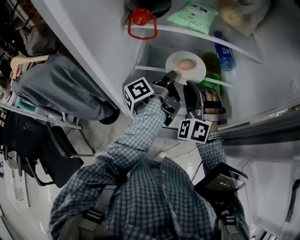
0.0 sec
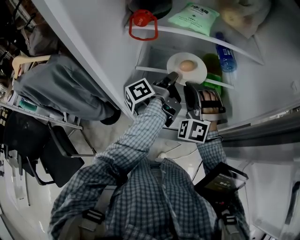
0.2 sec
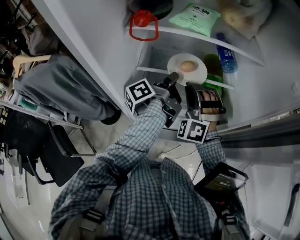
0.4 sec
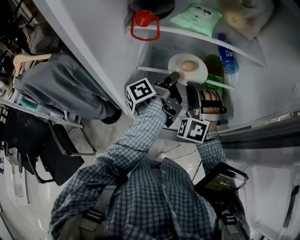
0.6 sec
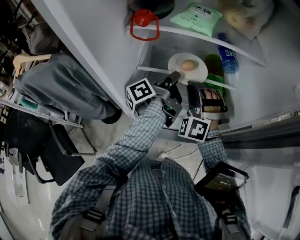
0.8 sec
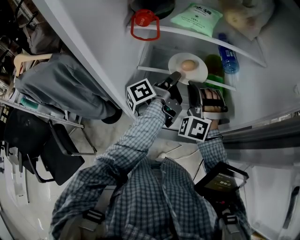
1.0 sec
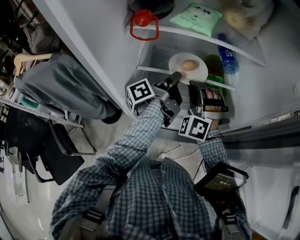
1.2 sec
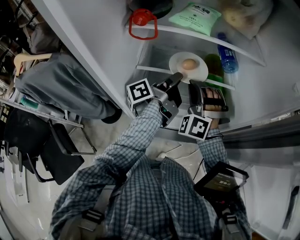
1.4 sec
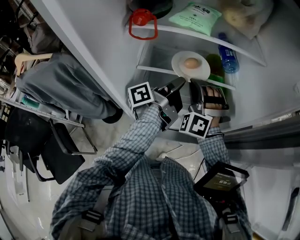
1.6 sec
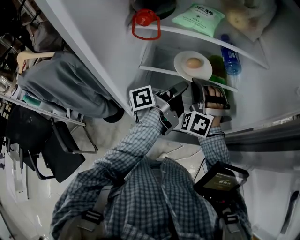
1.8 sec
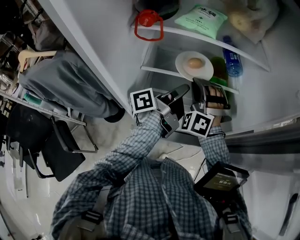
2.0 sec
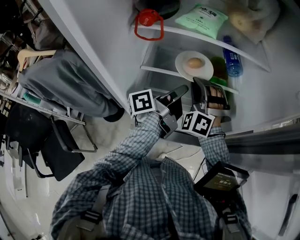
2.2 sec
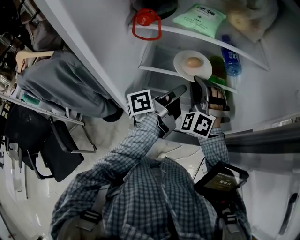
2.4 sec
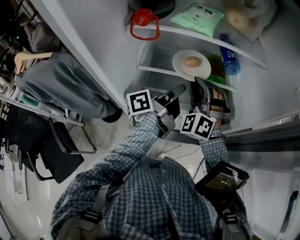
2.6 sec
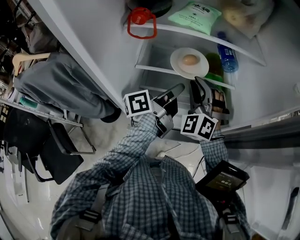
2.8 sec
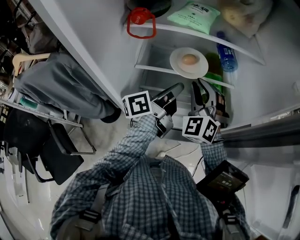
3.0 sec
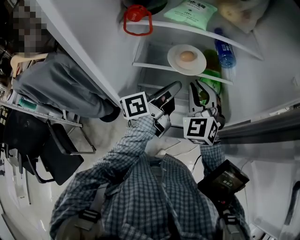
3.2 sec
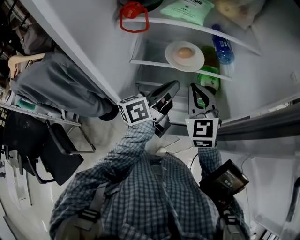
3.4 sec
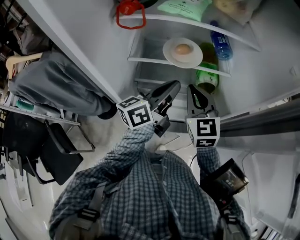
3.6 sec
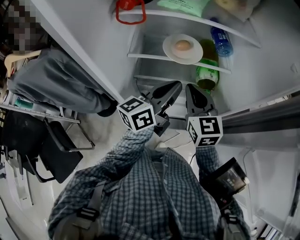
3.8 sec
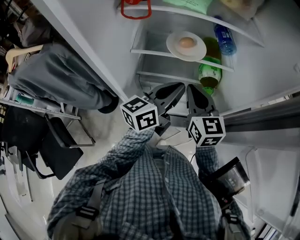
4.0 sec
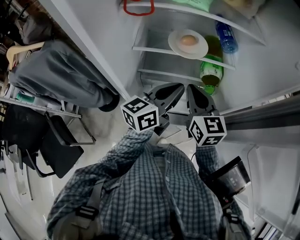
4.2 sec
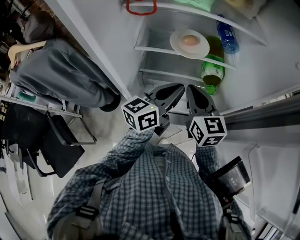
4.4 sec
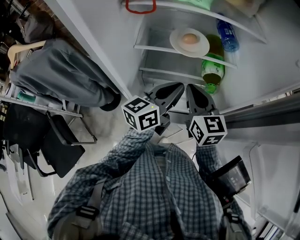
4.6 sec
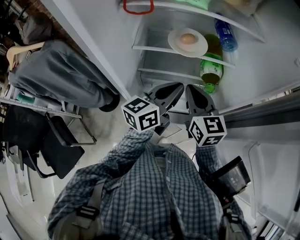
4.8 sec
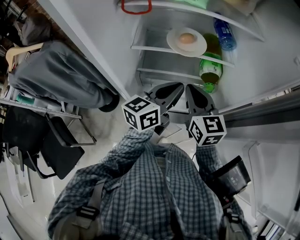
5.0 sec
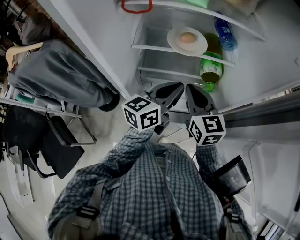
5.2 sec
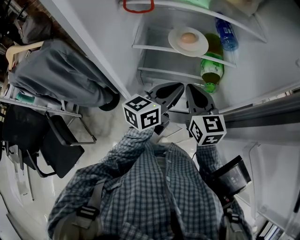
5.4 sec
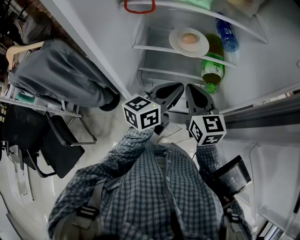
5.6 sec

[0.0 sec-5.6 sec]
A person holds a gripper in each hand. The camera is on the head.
2.8 sec to 4.2 sec: The right gripper moves roughly 10 cm, and twists some 70 degrees clockwise, seen from behind.

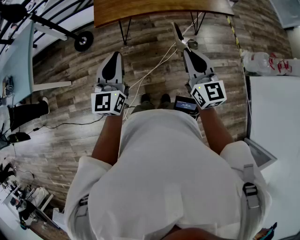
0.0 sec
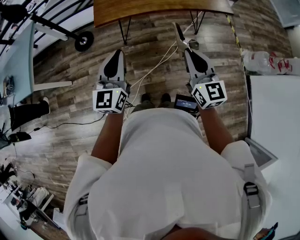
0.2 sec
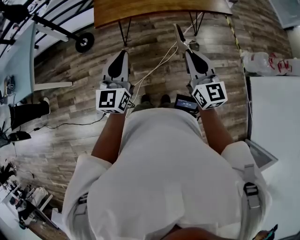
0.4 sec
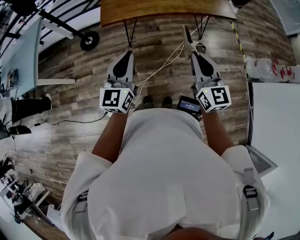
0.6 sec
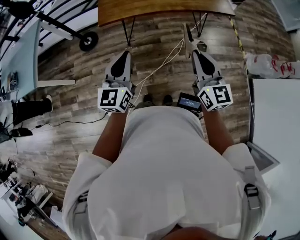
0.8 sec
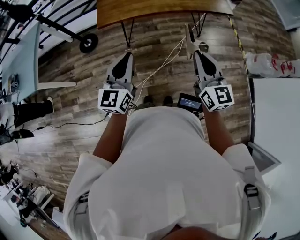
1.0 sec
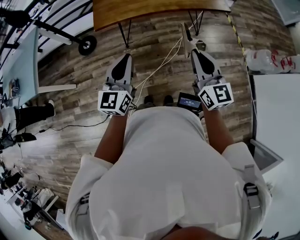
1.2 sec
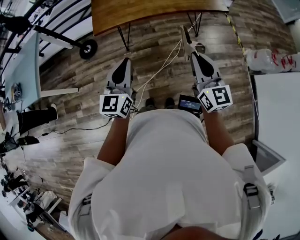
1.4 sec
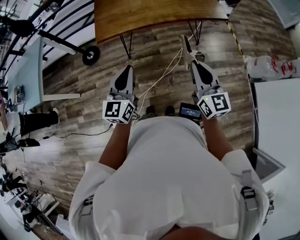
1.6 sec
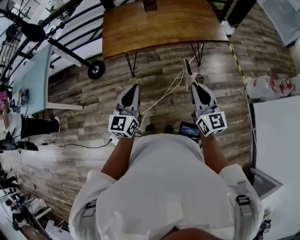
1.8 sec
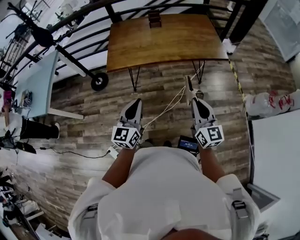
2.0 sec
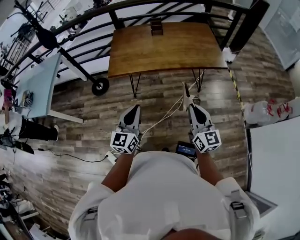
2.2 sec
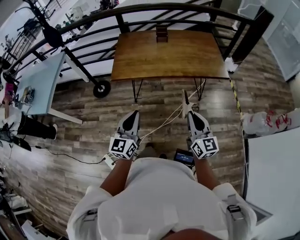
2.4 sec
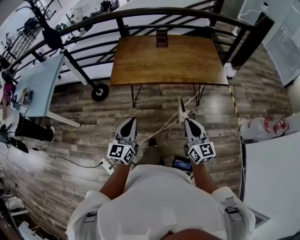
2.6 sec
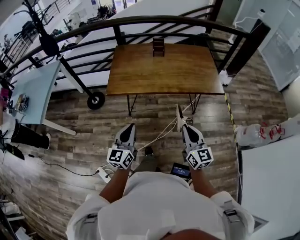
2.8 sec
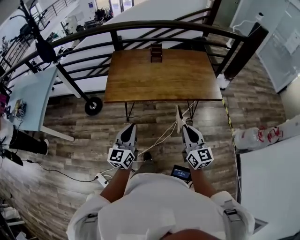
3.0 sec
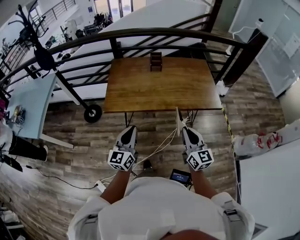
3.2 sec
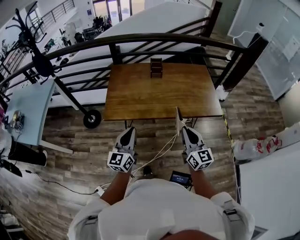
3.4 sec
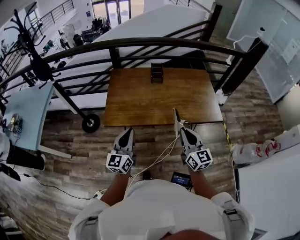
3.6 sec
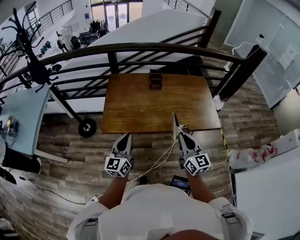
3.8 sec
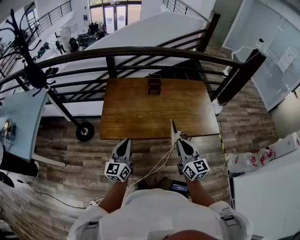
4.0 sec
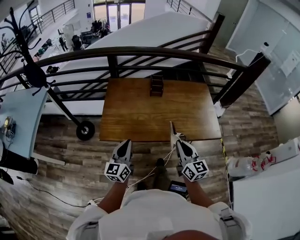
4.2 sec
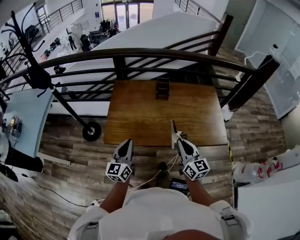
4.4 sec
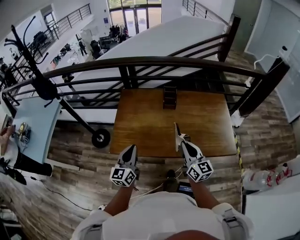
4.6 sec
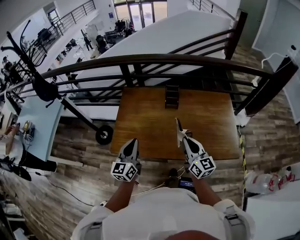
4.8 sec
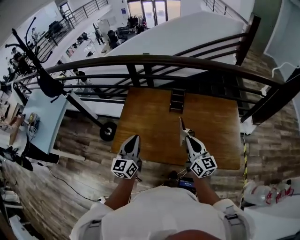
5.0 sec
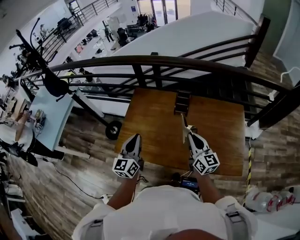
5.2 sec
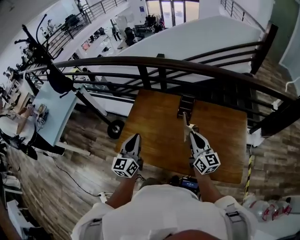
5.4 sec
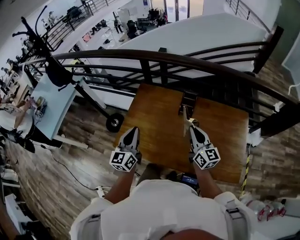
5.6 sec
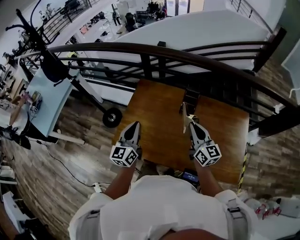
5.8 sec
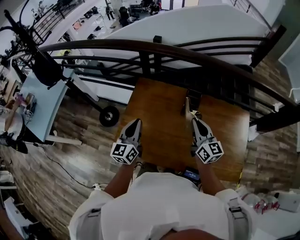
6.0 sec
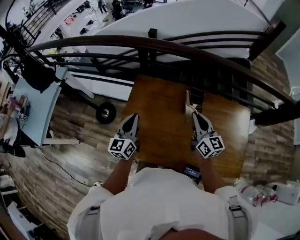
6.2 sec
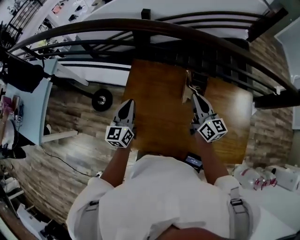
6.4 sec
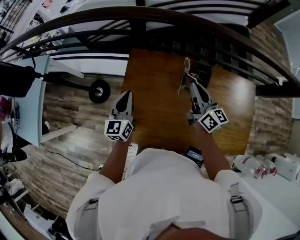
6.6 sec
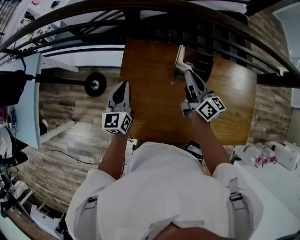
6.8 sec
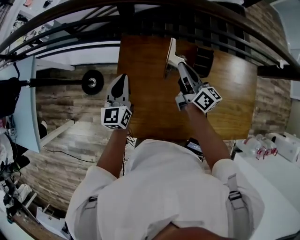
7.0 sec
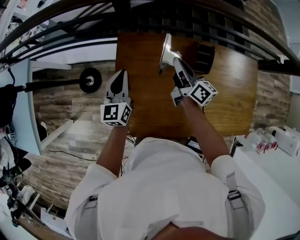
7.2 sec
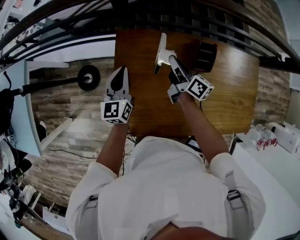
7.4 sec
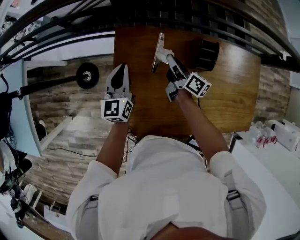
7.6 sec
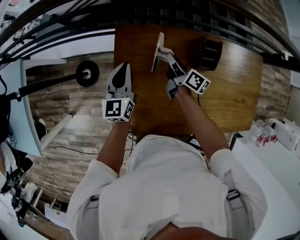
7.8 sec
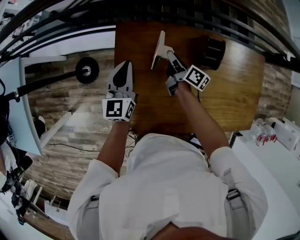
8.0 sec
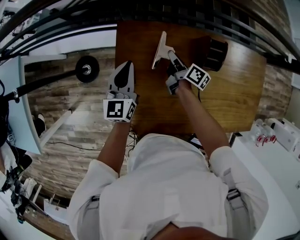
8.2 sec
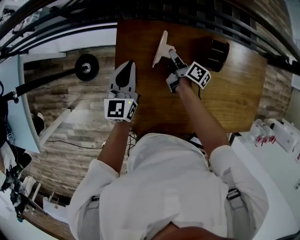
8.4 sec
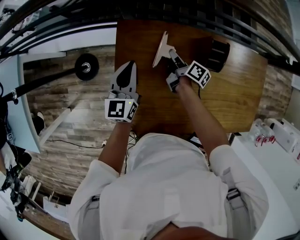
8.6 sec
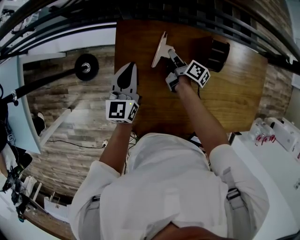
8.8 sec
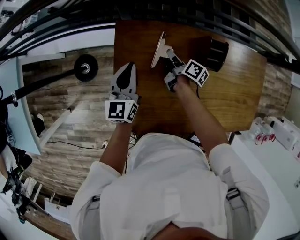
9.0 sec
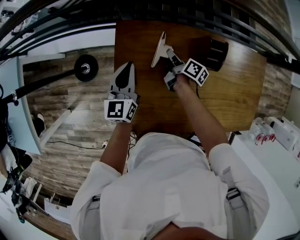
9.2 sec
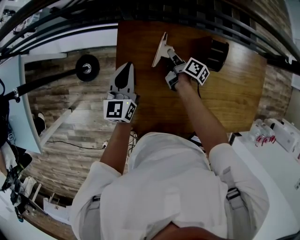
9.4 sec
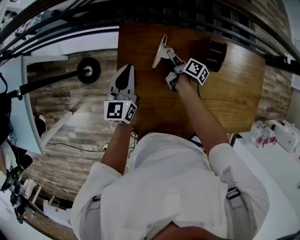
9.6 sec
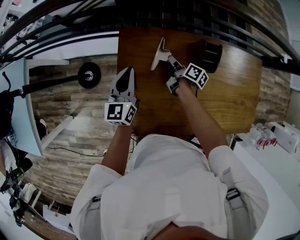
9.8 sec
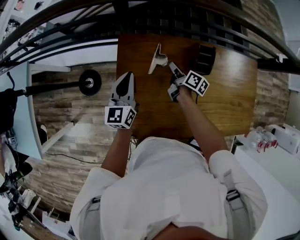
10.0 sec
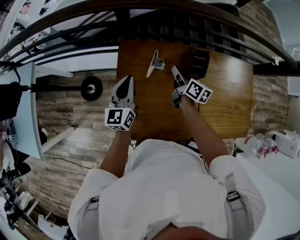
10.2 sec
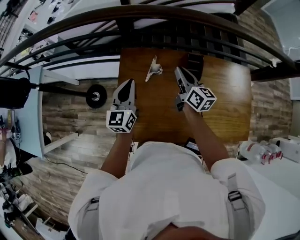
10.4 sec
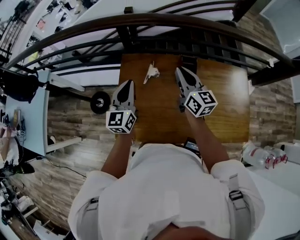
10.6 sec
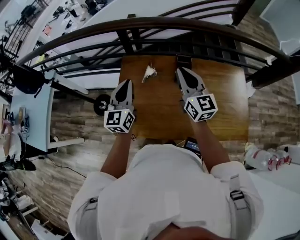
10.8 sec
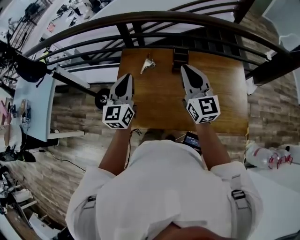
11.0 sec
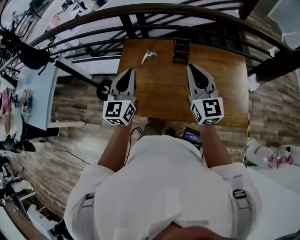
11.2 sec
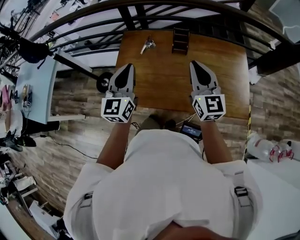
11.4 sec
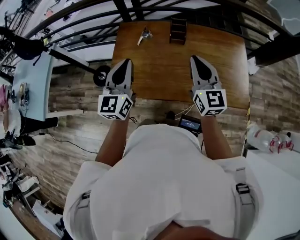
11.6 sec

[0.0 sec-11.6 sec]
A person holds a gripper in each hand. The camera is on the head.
0.0 sec to 1.4 sec: The grippers both shift to the right by about 10 cm.
1.4 sec to 2.8 sec: The right gripper heads forward, covering some 5 cm.
2.8 sec to 4.4 sec: Both grippers move forward, about 35 cm.
4.4 sec to 5.8 sec: Both grippers move forward, approximately 30 cm.
5.8 sec to 7.2 sec: The grippers both shift forward by some 25 cm. The right gripper changes its angle by some 30 degrees.
7.2 sec to 8.8 sec: The right gripper is displaced downward by some 20 cm, and swivels some 40 degrees.
8.8 sec to 10.2 sec: The left gripper heads upward, covering roughly 5 cm; the right gripper shifts some 10 cm upward and backward, and swivels some 20 degrees.
10.2 sec to 11.6 sec: Both grippers move backward and upward, some 40 cm. The right gripper rotates around the line of its fingers by about 50 degrees, counterclockwise from behind.

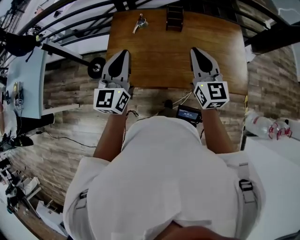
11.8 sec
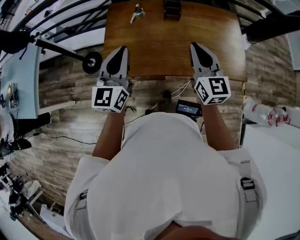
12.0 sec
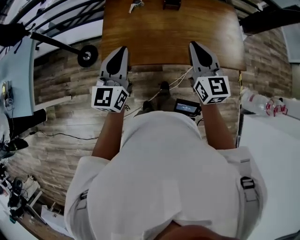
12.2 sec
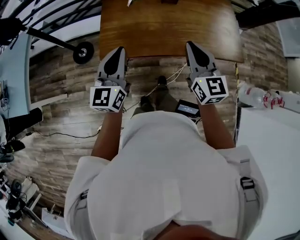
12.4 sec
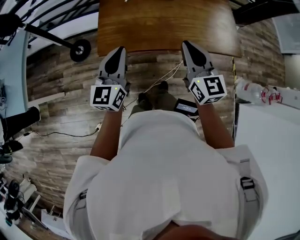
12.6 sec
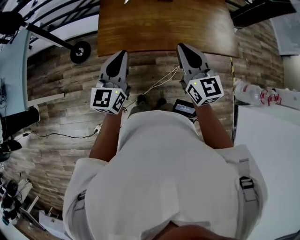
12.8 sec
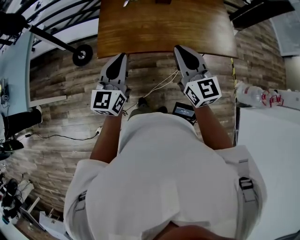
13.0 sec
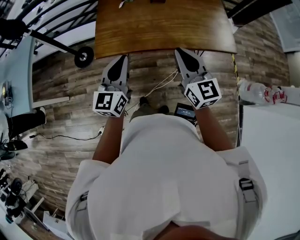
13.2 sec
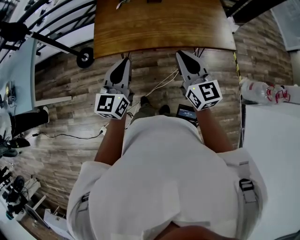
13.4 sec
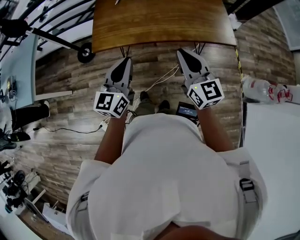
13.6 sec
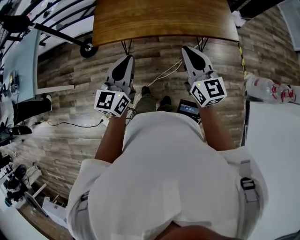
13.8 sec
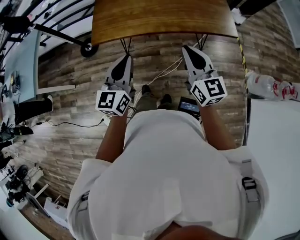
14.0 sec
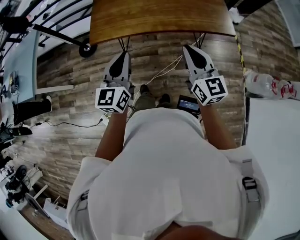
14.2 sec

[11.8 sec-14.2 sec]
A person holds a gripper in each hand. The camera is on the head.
11.8 sec to 13.0 sec: The left gripper moves backward, roughly 20 cm. The right gripper goes some 25 cm backward and to the left.
13.0 sec to 14.2 sec: The two grippers go about 25 cm to the right and backward.

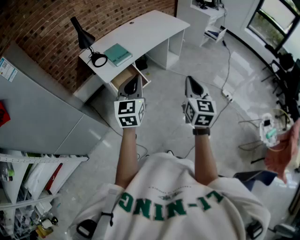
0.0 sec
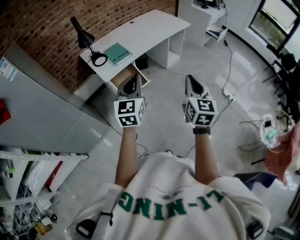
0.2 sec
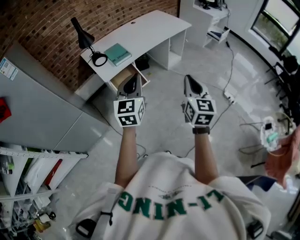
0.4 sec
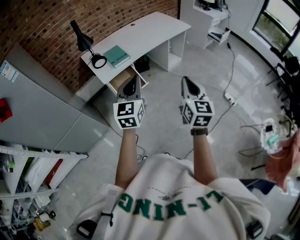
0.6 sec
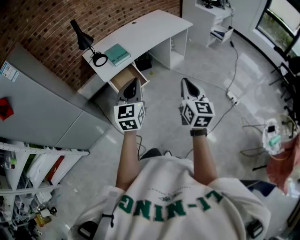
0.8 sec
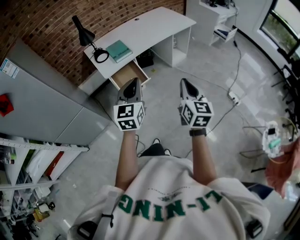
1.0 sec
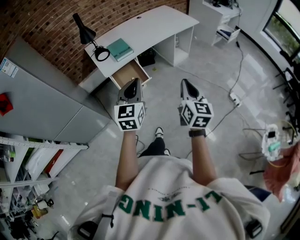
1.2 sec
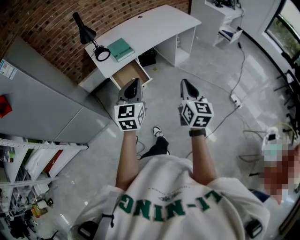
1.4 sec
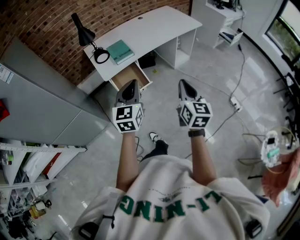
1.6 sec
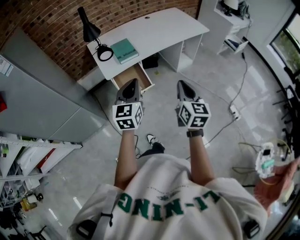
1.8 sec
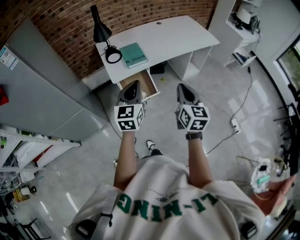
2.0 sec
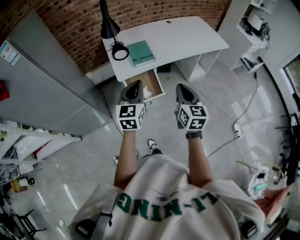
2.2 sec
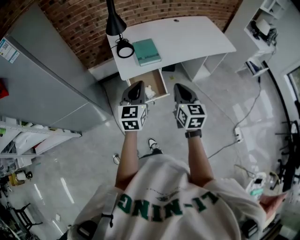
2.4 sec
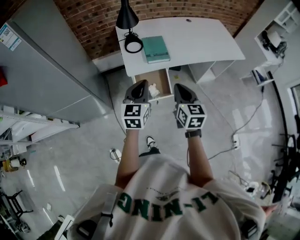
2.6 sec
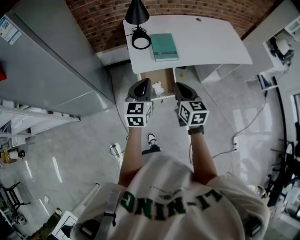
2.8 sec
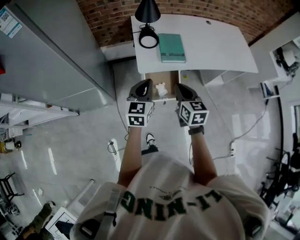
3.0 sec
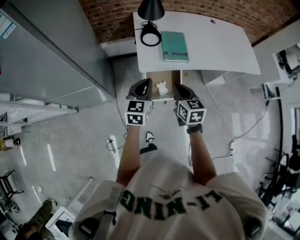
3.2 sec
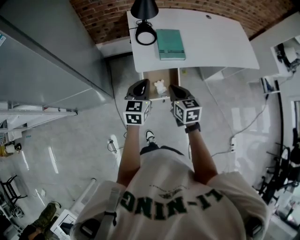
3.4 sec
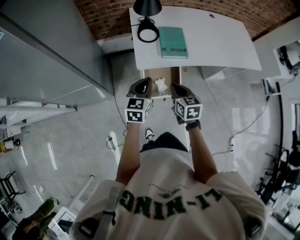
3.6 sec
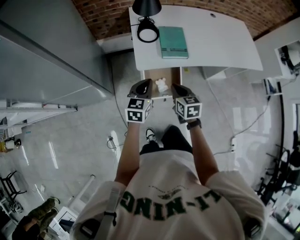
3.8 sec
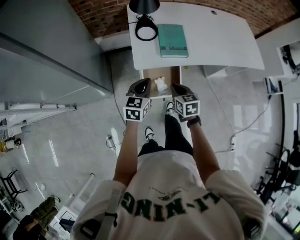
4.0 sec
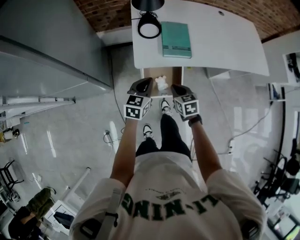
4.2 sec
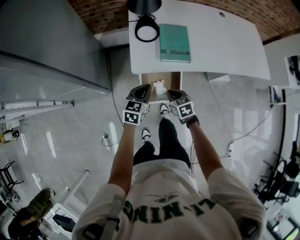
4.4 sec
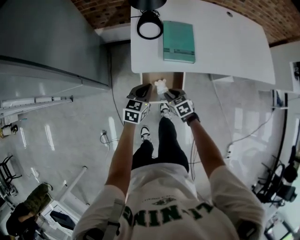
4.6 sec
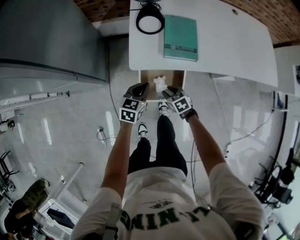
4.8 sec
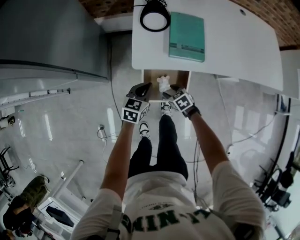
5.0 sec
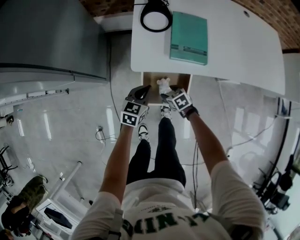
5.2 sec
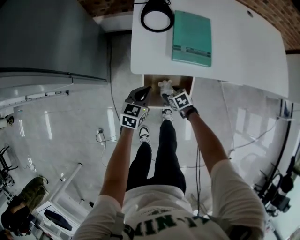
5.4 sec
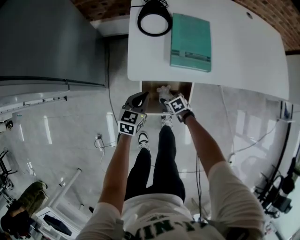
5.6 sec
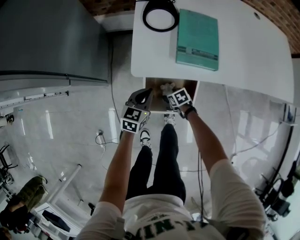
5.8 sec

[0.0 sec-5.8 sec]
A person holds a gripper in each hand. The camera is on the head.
0.0 sec to 1.4 sec: The right gripper heads to the right, forward and downward, covering about 10 cm. Meanwhile the left gripper goes approximately 5 cm to the right.
1.4 sec to 2.8 sec: The left gripper heads forward, to the left and downward, covering roughly 30 cm, and rotates some 20 degrees. Meanwhile the right gripper heads forward and to the left, covering some 35 cm, and turns by roughly 40 degrees.
2.8 sec to 4.4 sec: Both grippers move downward and forward, approximately 25 cm. The right gripper rotates roughly 40 degrees.
4.4 sec to 5.8 sec: The left gripper shifts about 15 cm downward; the right gripper goes some 30 cm downward, rotates about 30 degrees, and opens.
